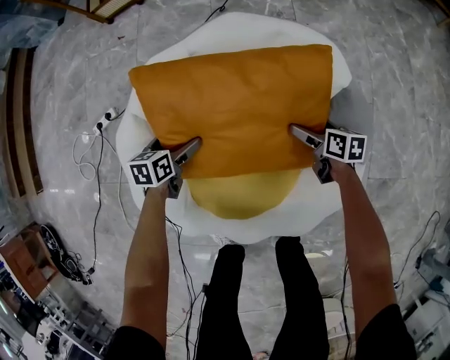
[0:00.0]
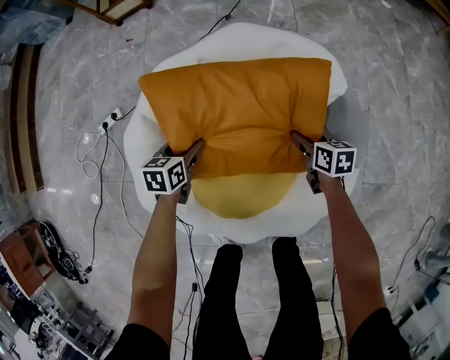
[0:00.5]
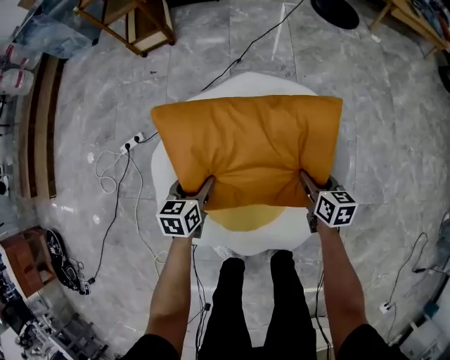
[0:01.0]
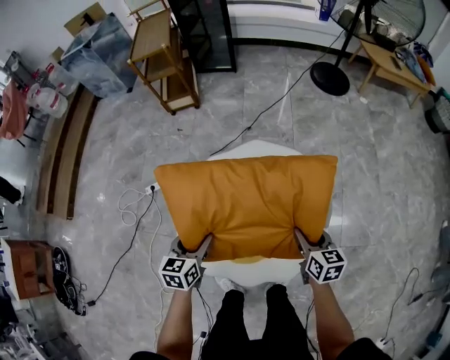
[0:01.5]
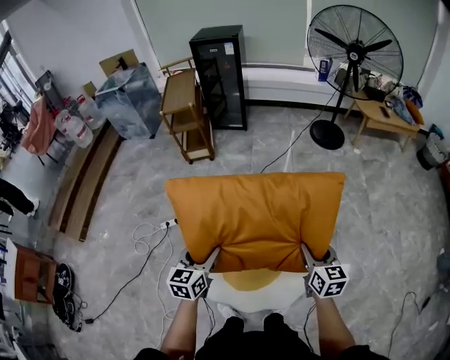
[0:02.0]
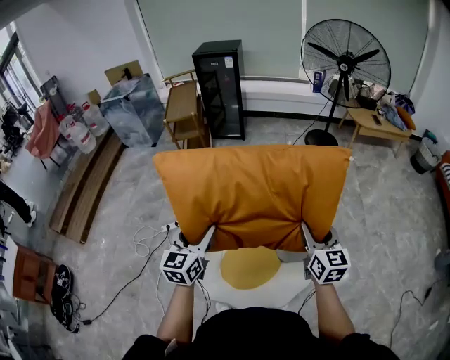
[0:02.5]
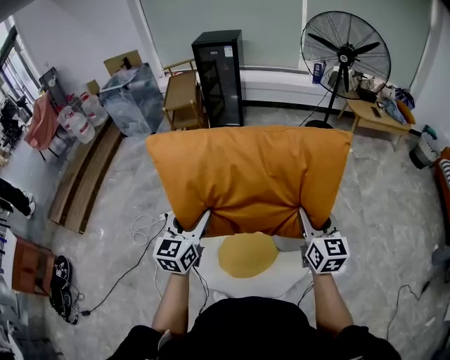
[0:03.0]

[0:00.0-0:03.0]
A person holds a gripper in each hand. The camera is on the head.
0:00.0 to 0:01.5: The two grippers go roughly 40 cm upward. The right gripper changes its angle by approximately 30 degrees, and closes its fingers; the left gripper rotates about 20 degrees, and closes its fingers.
0:01.5 to 0:03.0: Both grippers travel together upward, about 30 cm. The right gripper changes its angle by approximately 30 degrees. Meanwhile the left gripper swivels some 30 degrees.

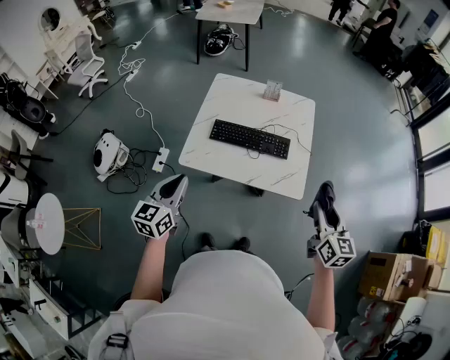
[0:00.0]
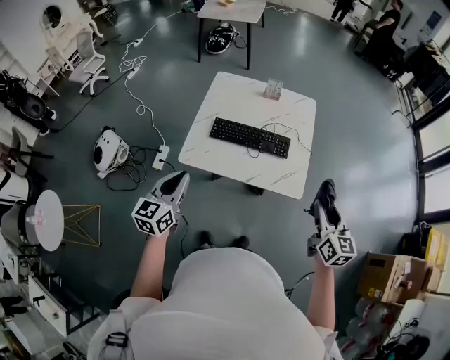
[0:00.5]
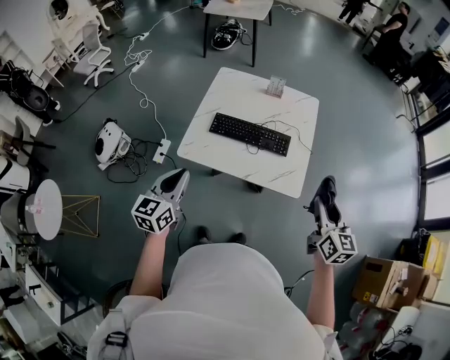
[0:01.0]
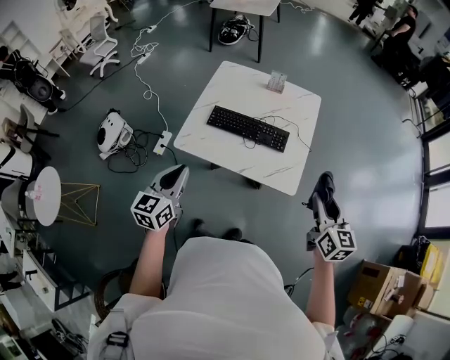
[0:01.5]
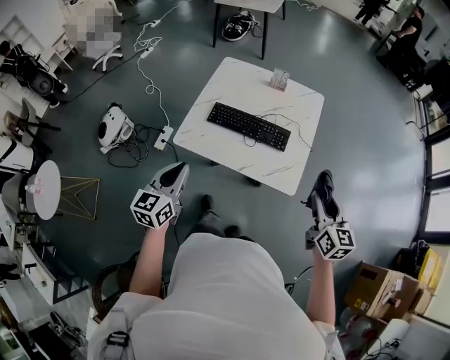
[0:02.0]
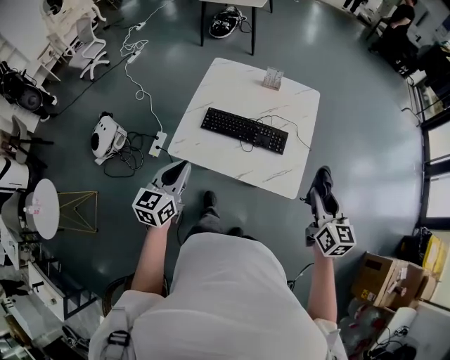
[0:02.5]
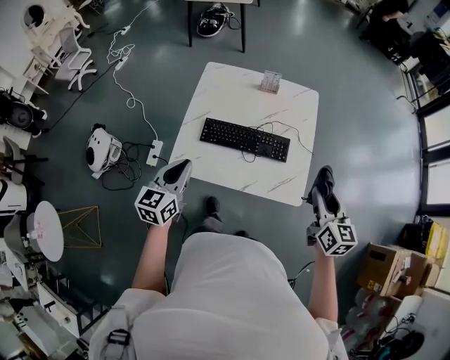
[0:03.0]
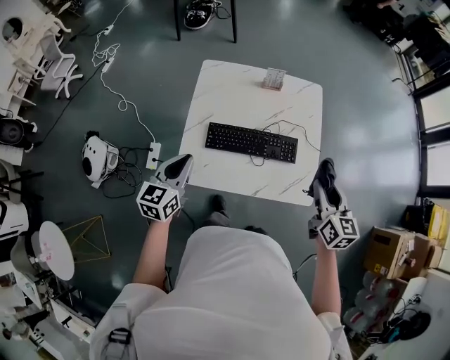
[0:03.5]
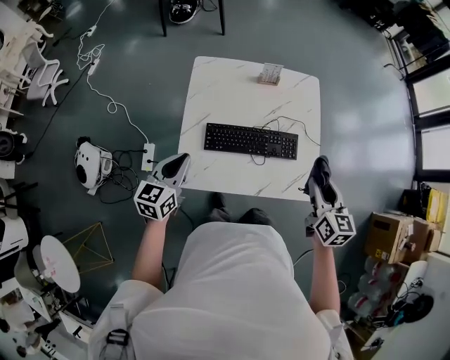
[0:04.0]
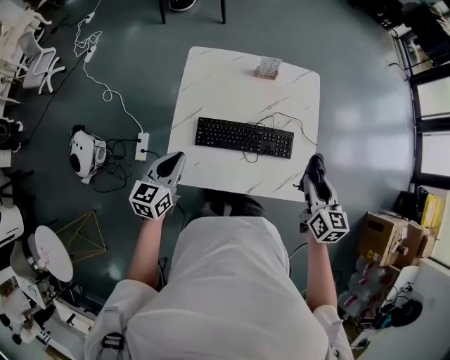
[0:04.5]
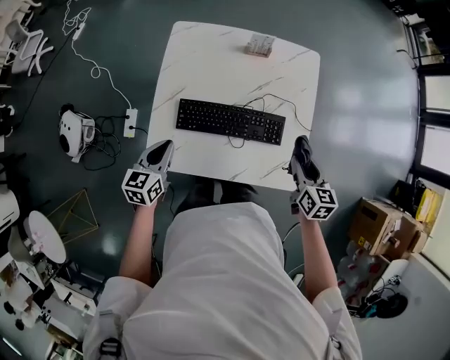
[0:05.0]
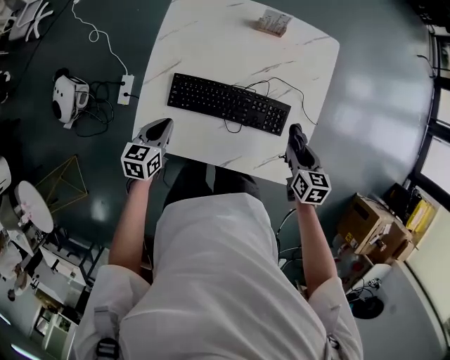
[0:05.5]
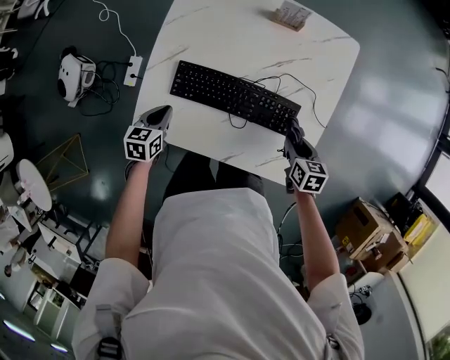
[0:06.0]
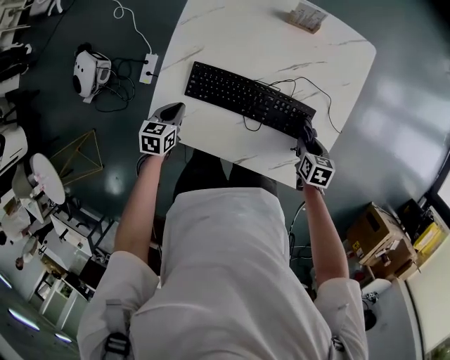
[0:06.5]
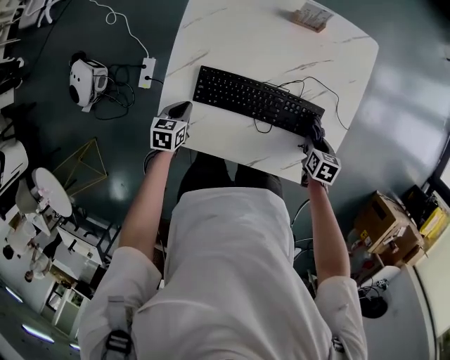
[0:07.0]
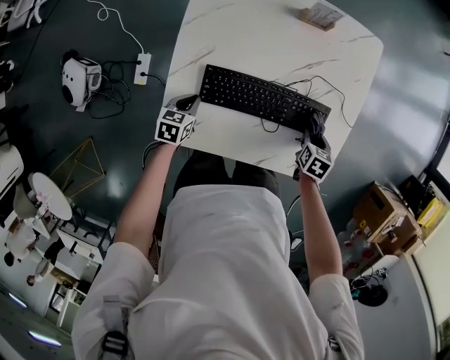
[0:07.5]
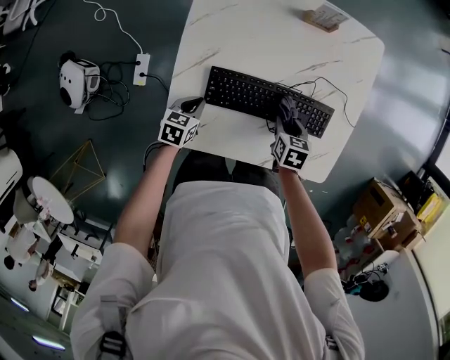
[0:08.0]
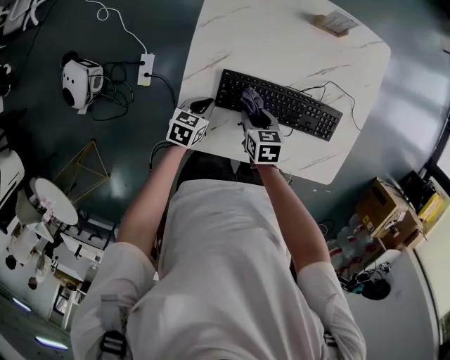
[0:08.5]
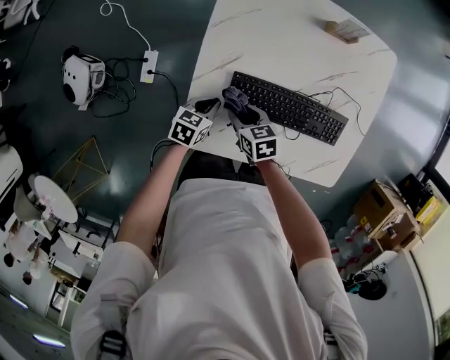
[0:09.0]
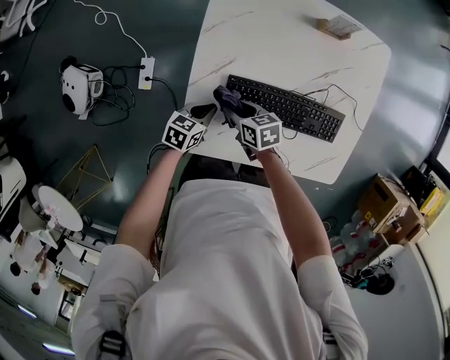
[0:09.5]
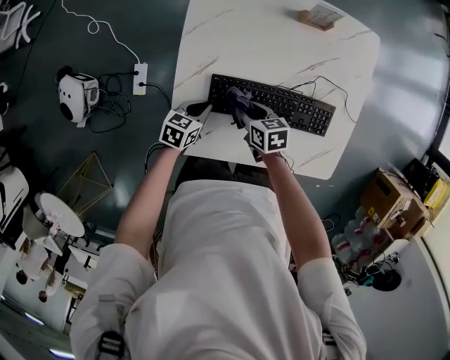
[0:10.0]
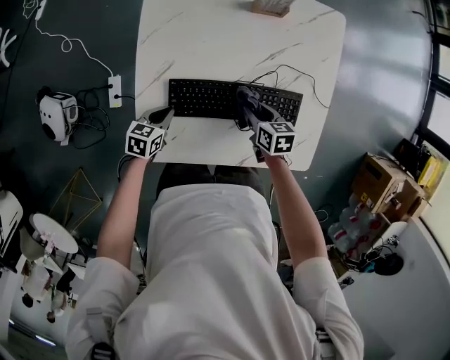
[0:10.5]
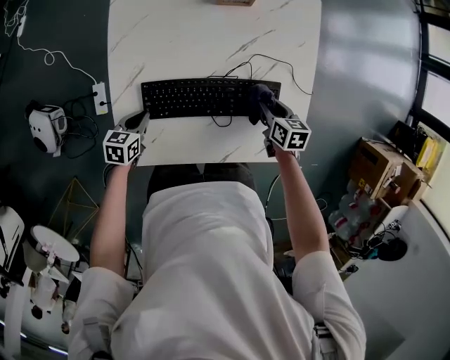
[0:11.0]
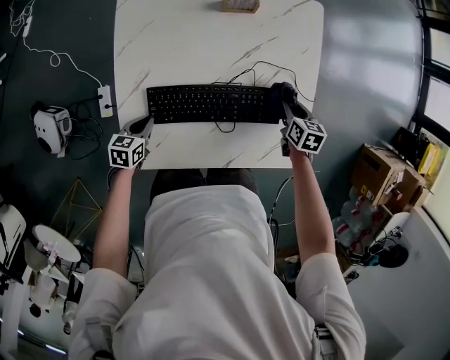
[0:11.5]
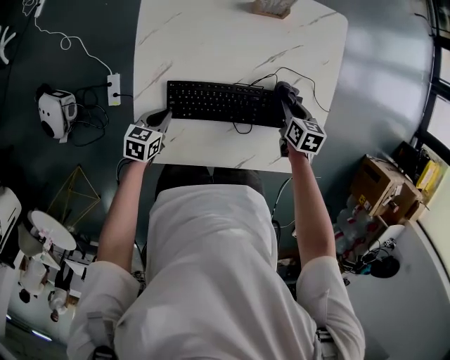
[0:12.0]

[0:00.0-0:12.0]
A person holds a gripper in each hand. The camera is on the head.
0:00.0 to 0:02.0: Both grippers move to the right, roughly 5 cm.
0:02.0 to 0:04.0: The left gripper is displaced forward and to the left by approximately 30 cm, and turns by roughly 20 degrees; the right gripper shifts roughly 20 cm to the left and forward.
0:04.0 to 0:06.0: Both grippers move downward, about 30 cm. The right gripper angles its fingers downward, by approximately 30 degrees, while the left gripper changes its angle by approximately 30 degrees.
0:06.0 to 0:08.0: The right gripper shifts by approximately 20 cm. Meanwhile the left gripper moves downward, some 5 cm.
0:08.0 to 0:10.0: The right gripper goes roughly 15 cm to the left, and swivels approximately 20 degrees.
0:10.0 to 0:12.0: The right gripper goes roughly 25 cm to the right, and swivels about 30 degrees.

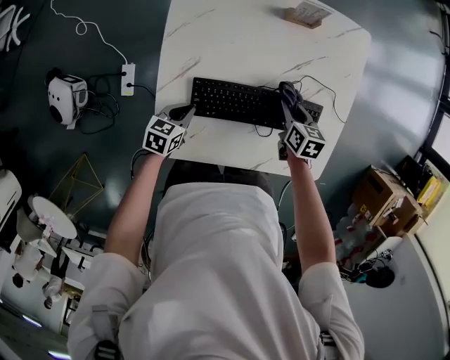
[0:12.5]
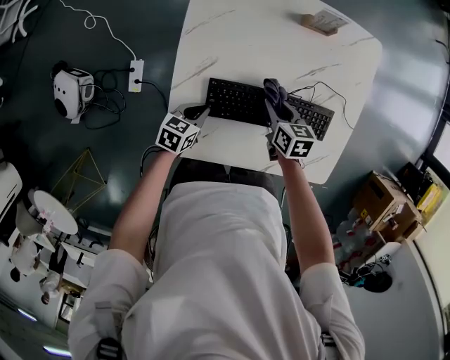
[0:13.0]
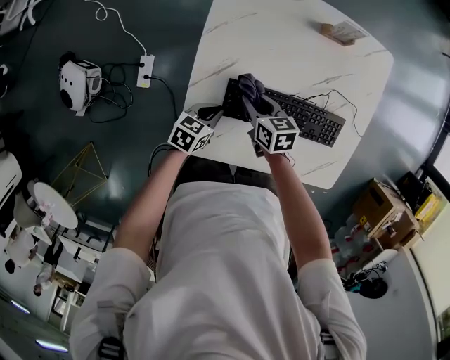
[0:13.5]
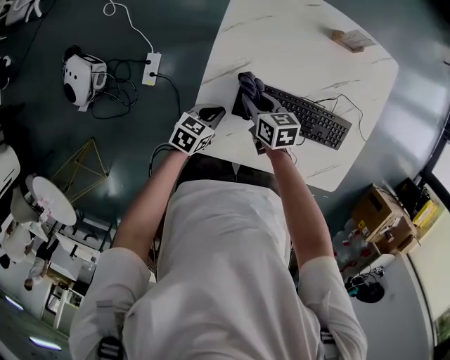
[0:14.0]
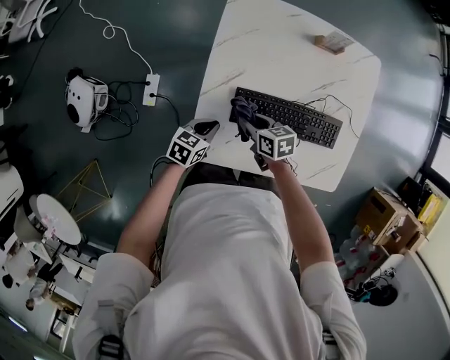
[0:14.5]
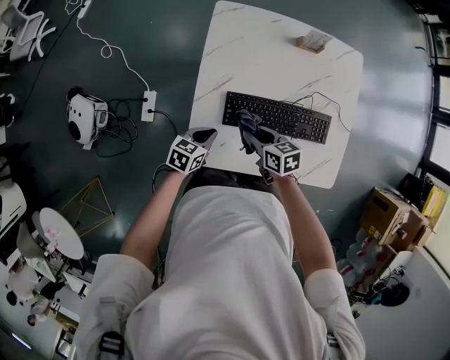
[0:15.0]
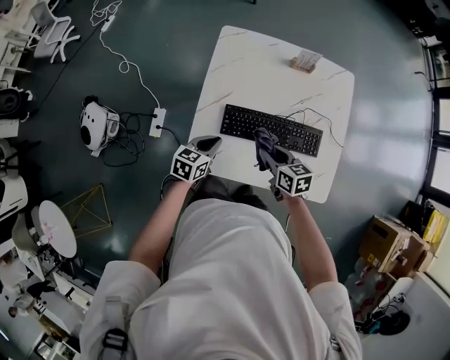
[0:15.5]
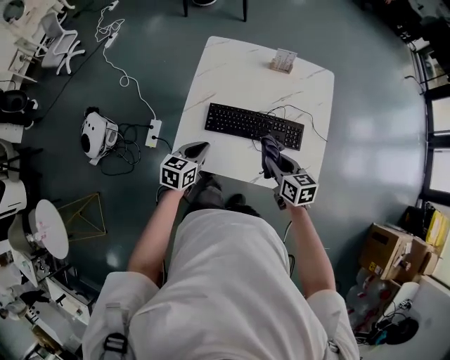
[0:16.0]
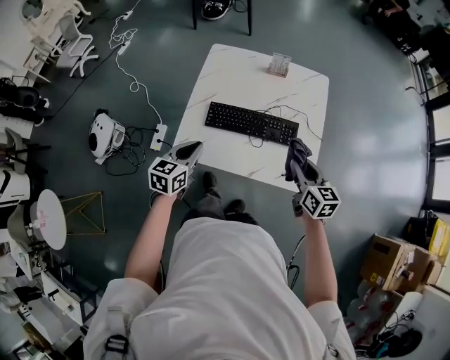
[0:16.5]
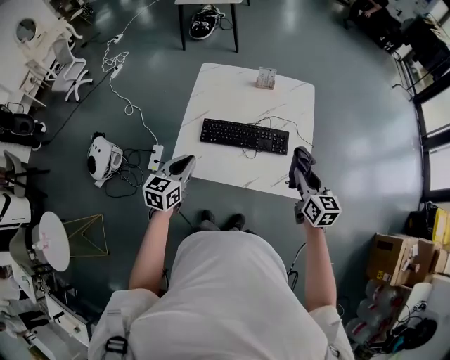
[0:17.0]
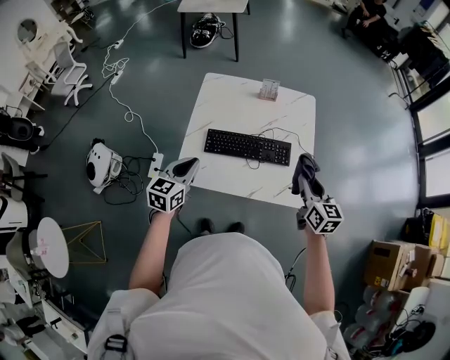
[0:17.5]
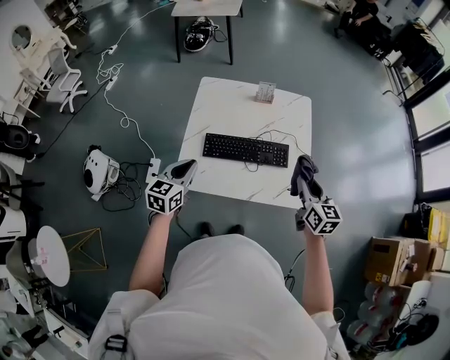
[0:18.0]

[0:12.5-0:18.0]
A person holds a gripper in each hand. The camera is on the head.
0:12.5 to 0:14.5: The left gripper moves to the left, roughly 5 cm. The right gripper travels to the left by about 25 cm, and changes its angle by about 30 degrees.
0:14.5 to 0:16.0: The left gripper travels upward, backward and to the right by approximately 20 cm, and rotates about 20 degrees; the right gripper moves to the right, upward and backward, about 30 cm, and changes its angle by approximately 20 degrees.
0:16.0 to 0:18.0: The left gripper shifts roughly 15 cm upward; the right gripper is displaced upward and to the right by some 20 cm, and changes its angle by approximately 30 degrees.

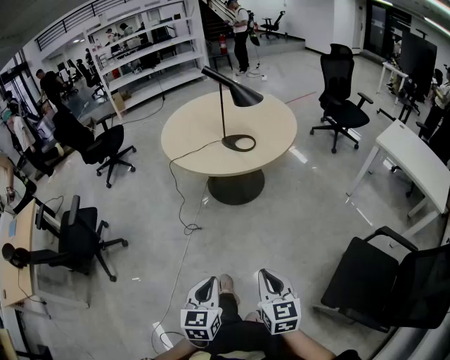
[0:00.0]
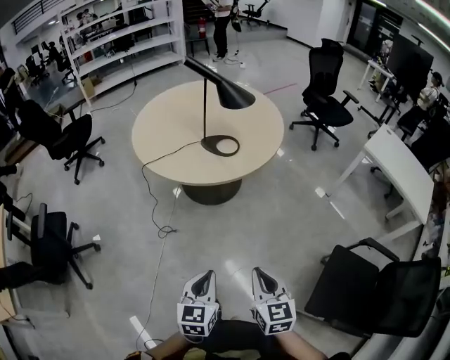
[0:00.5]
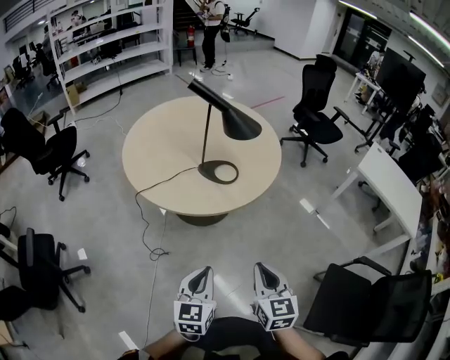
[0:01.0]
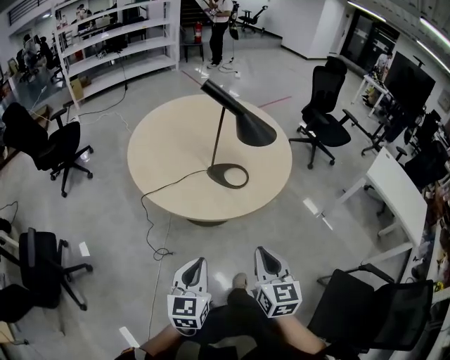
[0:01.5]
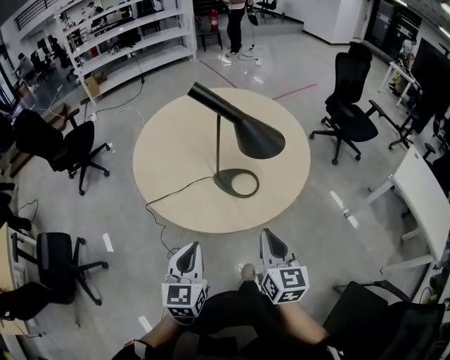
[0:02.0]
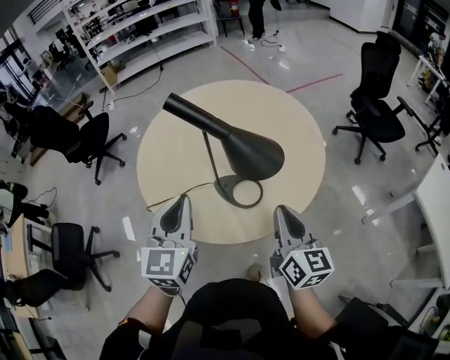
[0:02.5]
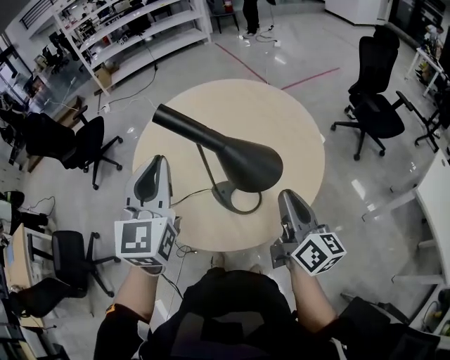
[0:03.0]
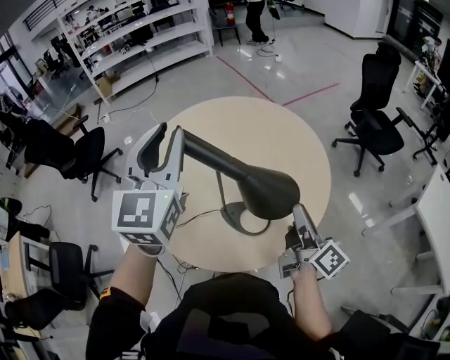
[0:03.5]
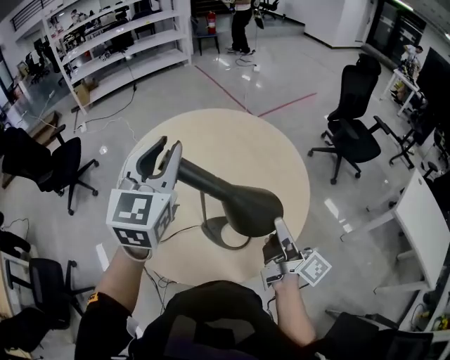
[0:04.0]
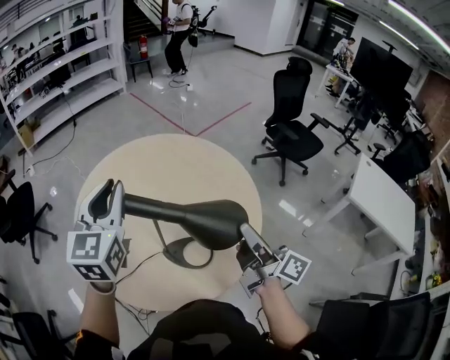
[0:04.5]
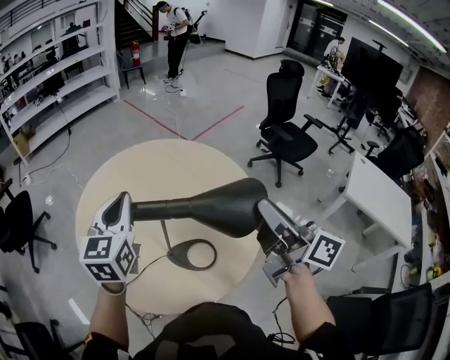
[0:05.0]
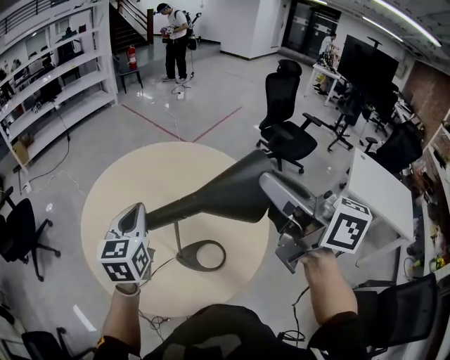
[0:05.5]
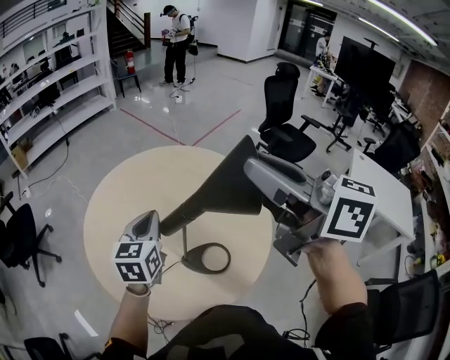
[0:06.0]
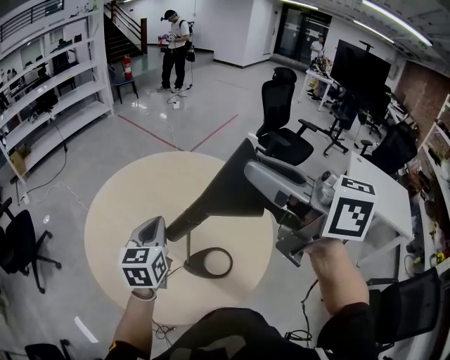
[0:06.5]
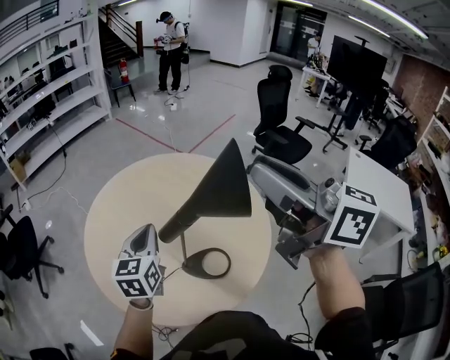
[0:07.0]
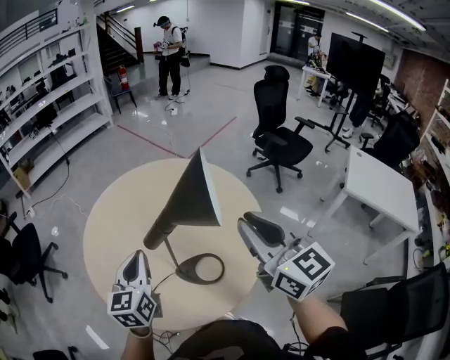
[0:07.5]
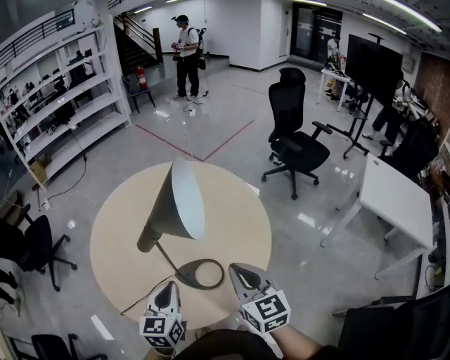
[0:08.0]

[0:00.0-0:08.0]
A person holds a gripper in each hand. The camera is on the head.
0:00.0 to 0:02.0: The pair of grippers is taken forward, roughly 60 cm.
0:02.0 to 0:04.0: The right gripper goes some 30 cm forward and to the right, and rolls clockwise, seen from behind, by about 60 degrees, while the left gripper travels forward and upward by roughly 50 cm, swivels approximately 20 degrees, and opens up.
0:04.0 to 0:06.0: The right gripper shifts about 30 cm upward, and rotates around the line of its fingers by some 40 degrees, counterclockwise from behind, while the left gripper heads downward, covering some 10 cm, rotates some 20 degrees, and closes its fingers.
0:06.0 to 0:08.0: The left gripper moves backward, downward and to the right, some 20 cm. Meanwhile the right gripper shifts roughly 30 cm downward, and swivels about 30 degrees.
